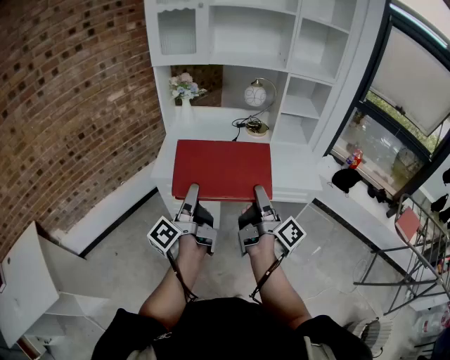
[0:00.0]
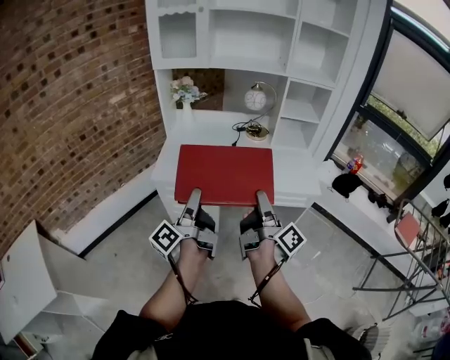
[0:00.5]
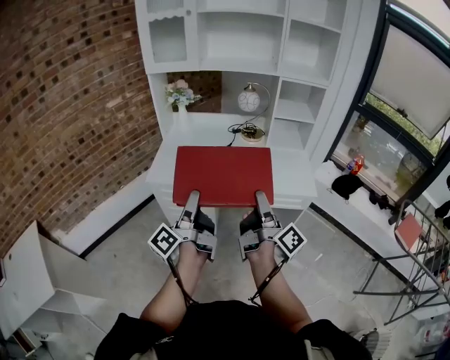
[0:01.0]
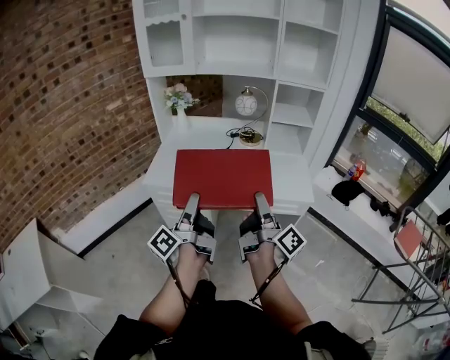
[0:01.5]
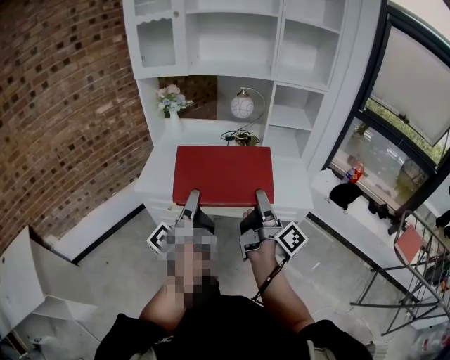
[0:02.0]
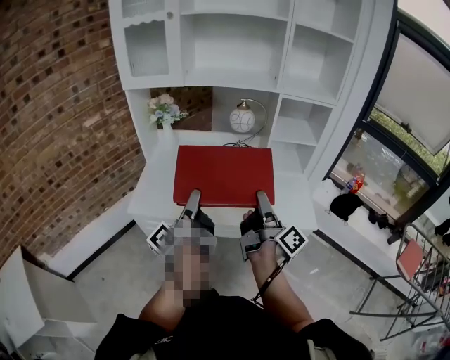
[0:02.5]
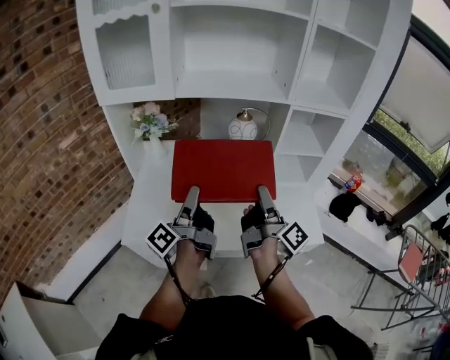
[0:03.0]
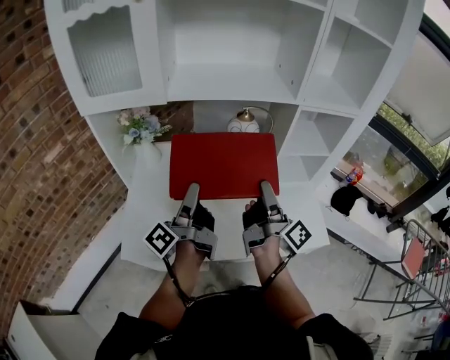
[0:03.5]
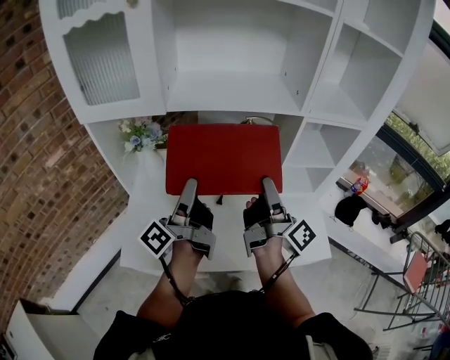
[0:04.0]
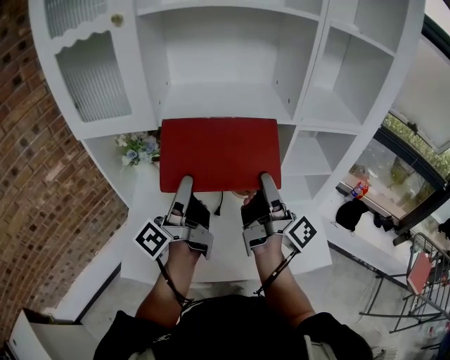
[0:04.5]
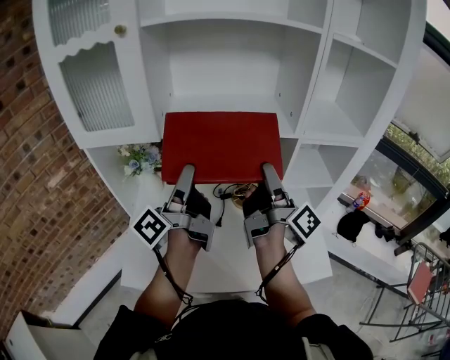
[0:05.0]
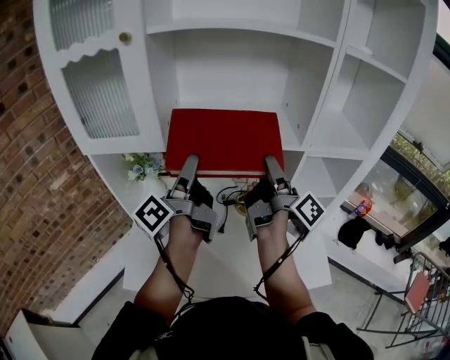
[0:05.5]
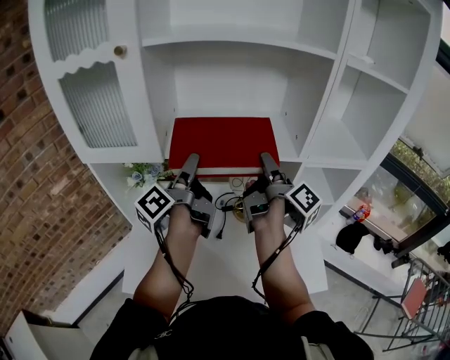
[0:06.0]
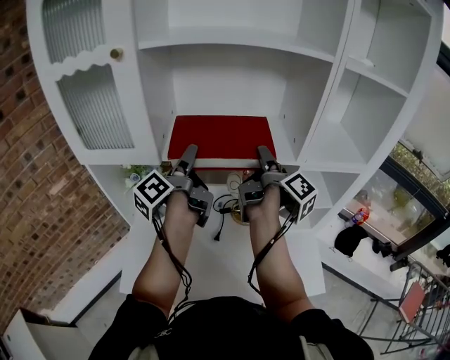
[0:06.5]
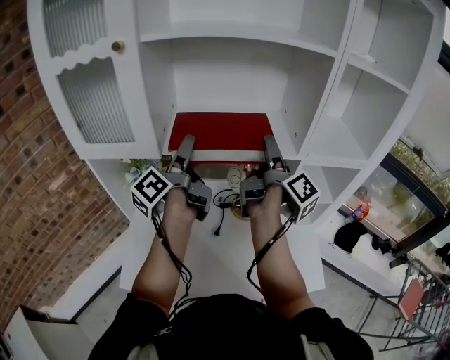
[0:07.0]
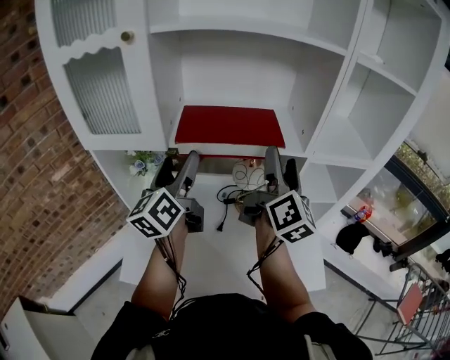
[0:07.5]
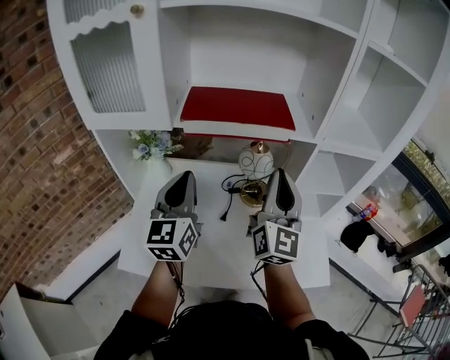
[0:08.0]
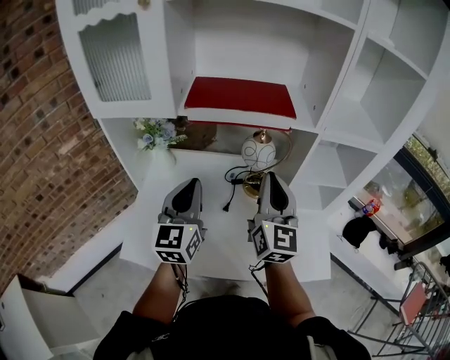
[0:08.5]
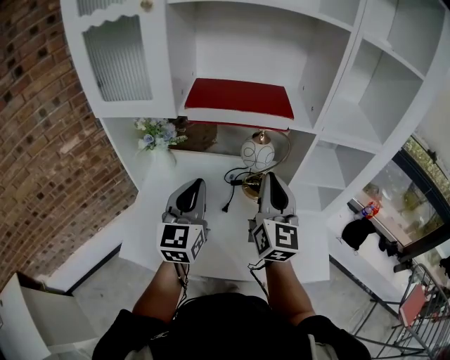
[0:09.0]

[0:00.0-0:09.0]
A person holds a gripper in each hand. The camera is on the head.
0:00.0 to 0:02.0: The grippers both shift to the right and forward by some 15 cm.
0:02.0 to 0:04.5: The pair of grippers is taken forward, about 40 cm.
0:04.5 to 0:07.0: Both grippers travel together forward and upward, some 15 cm. The right gripper opens its fingers; the left gripper opens up.
0:07.0 to 0:09.0: Both grippers move backward and downward, some 15 cm. The left gripper rolls clockwise, seen from behind, by approximately 70 degrees, and closes up; the right gripper twists approximately 80 degrees counterclockwise, seen from behind, and closes up.

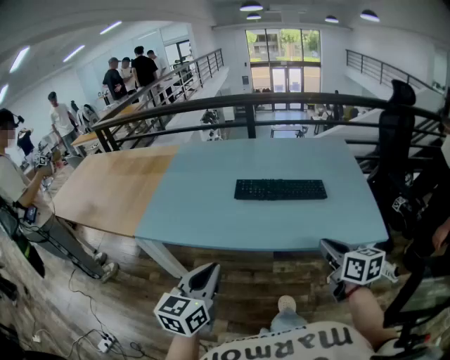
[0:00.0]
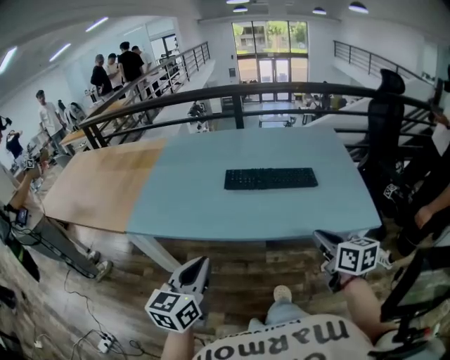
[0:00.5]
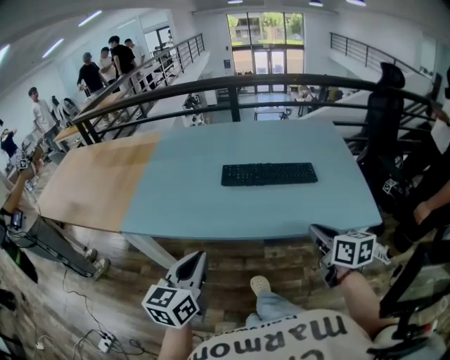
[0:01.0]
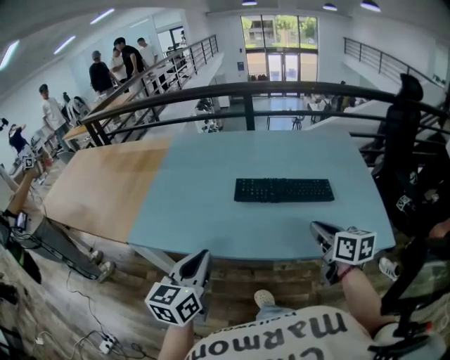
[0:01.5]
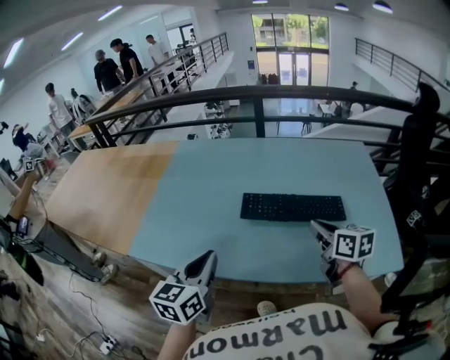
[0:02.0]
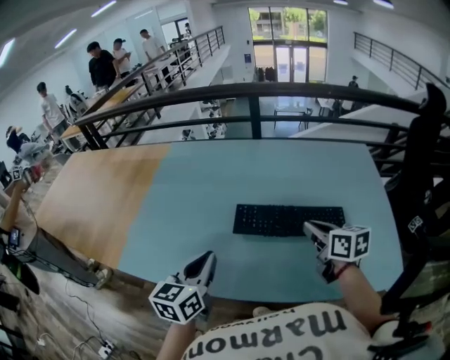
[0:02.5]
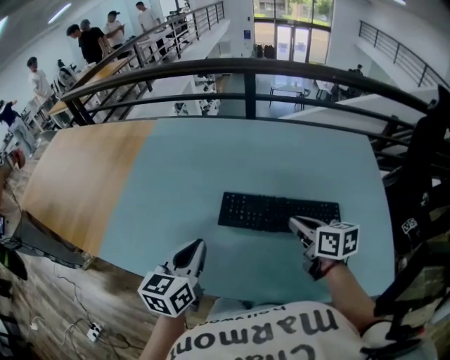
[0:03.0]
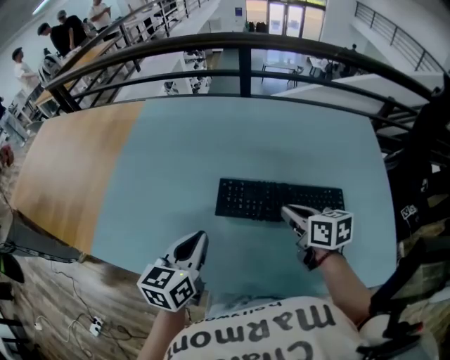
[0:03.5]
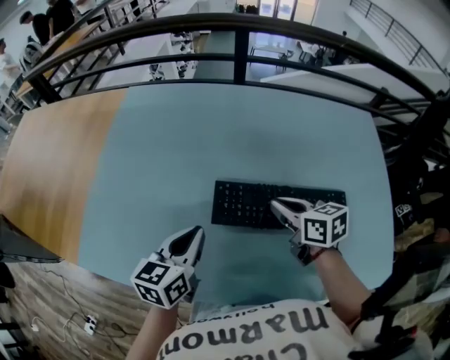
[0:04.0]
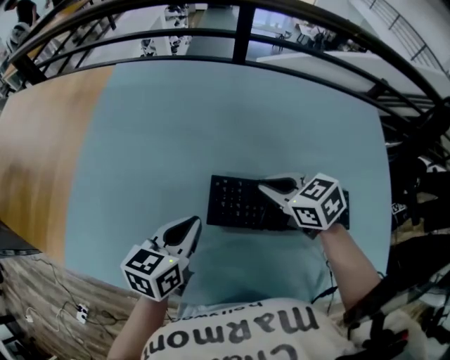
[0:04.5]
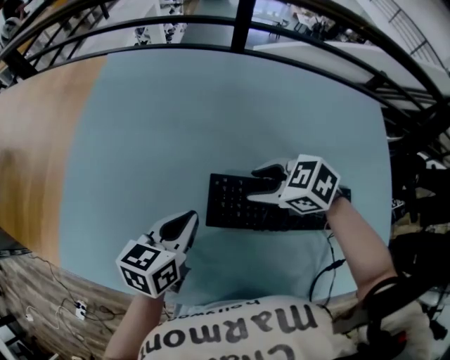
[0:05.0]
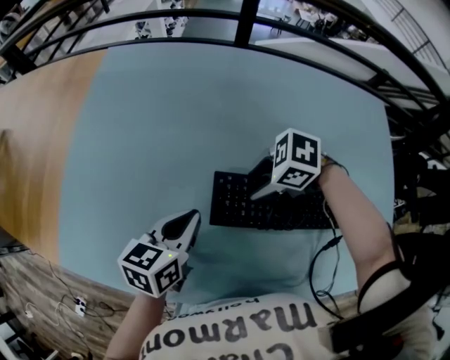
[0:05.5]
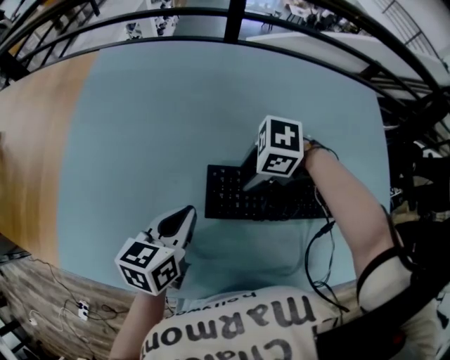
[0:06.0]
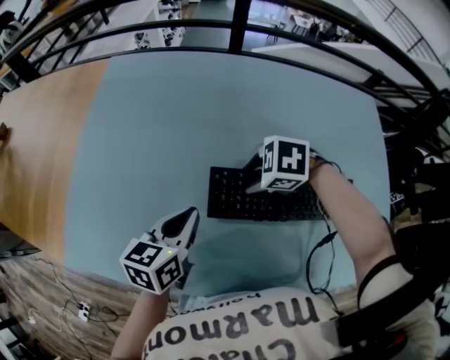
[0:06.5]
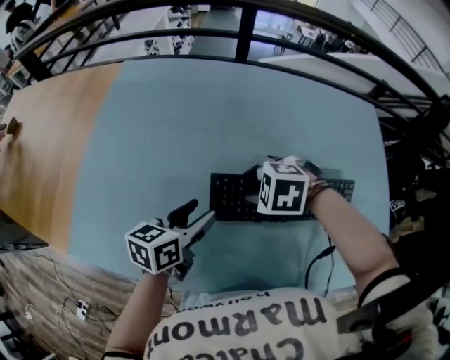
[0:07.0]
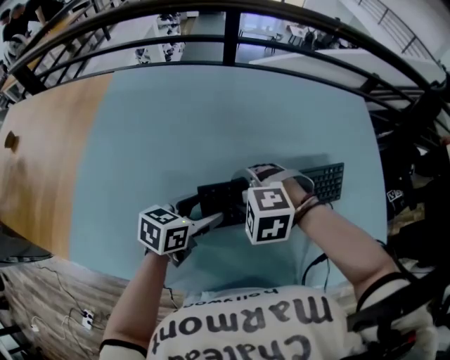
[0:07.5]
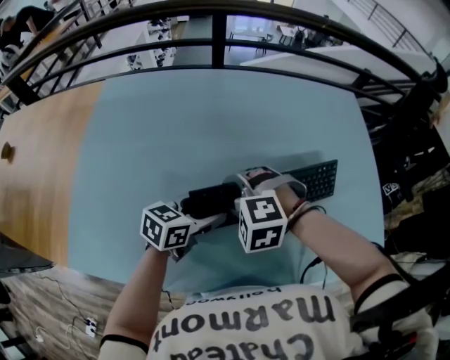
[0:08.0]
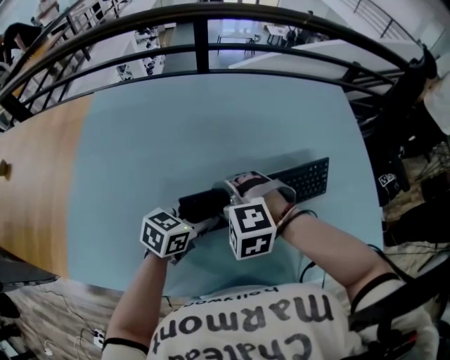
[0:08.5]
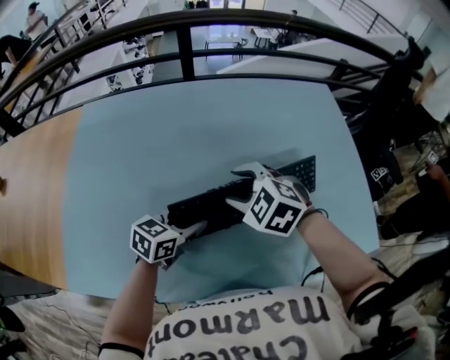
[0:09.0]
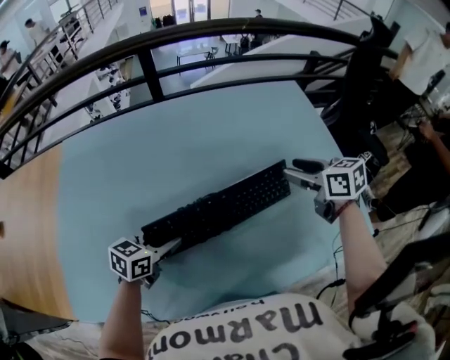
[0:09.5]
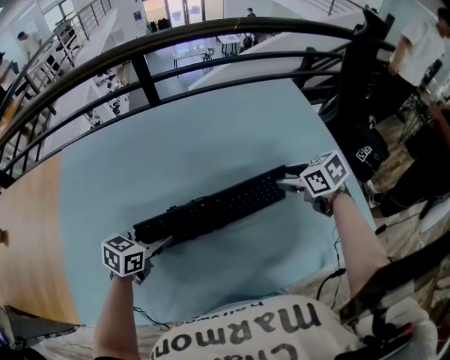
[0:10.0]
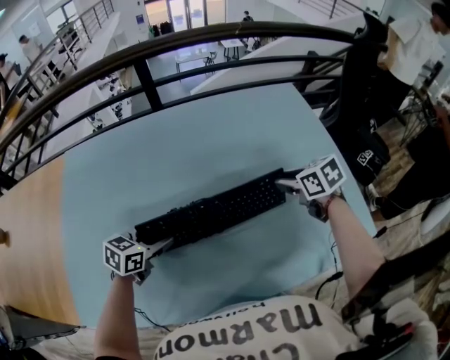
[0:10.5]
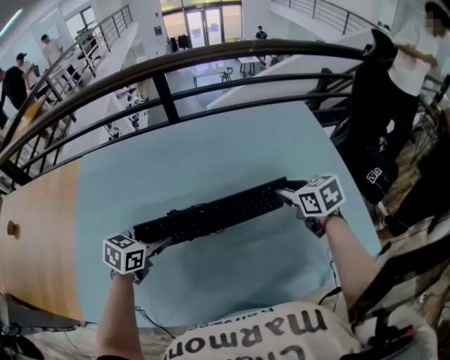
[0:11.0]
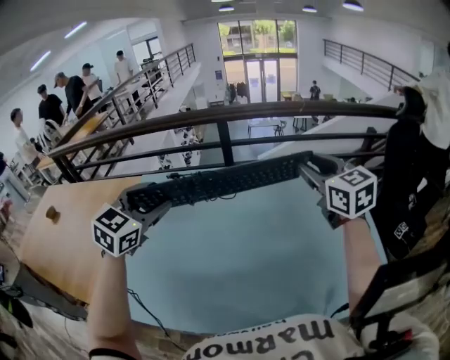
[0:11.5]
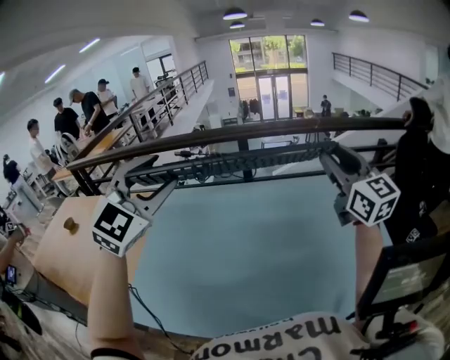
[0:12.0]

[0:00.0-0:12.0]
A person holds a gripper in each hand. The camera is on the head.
0:00.0 to 0:02.0: The two grippers go approximately 20 cm forward.
0:02.0 to 0:04.0: Both grippers travel together forward and downward, some 20 cm.
0:04.0 to 0:06.0: The left gripper is displaced downward by about 5 cm; the right gripper ends up approximately 10 cm from where it was, turns by about 70 degrees, and opens its fingers.
0:06.0 to 0:08.0: The right gripper shifts about 5 cm upward, and swivels about 50 degrees. The left gripper moves roughly 10 cm, changes its angle by roughly 30 degrees, and opens.
0:08.0 to 0:10.0: The right gripper goes some 30 cm to the right, and rolls clockwise, seen from behind, by roughly 80 degrees.
0:10.0 to 0:12.0: Both grippers move upward, some 40 cm. The right gripper points its fingers about 60 degrees further upward. The left gripper tilts its fingers some 30 degrees upward.

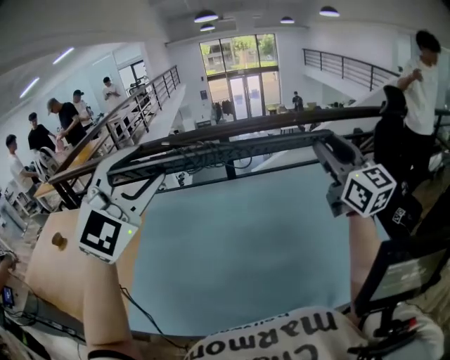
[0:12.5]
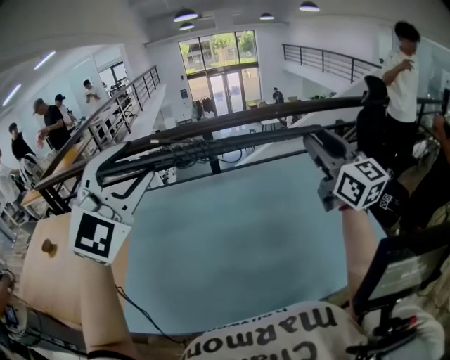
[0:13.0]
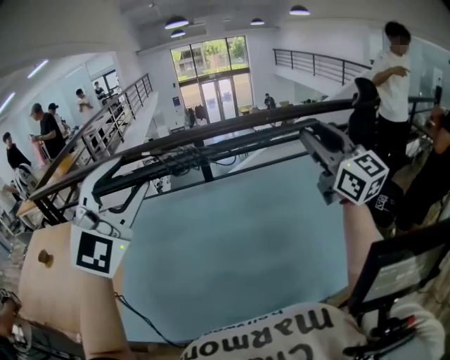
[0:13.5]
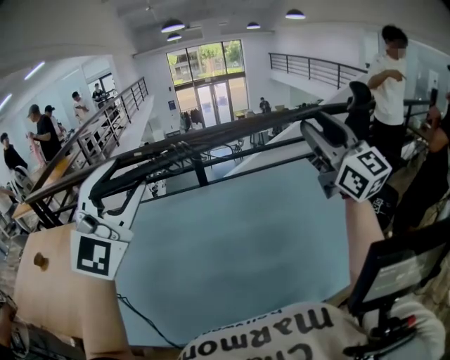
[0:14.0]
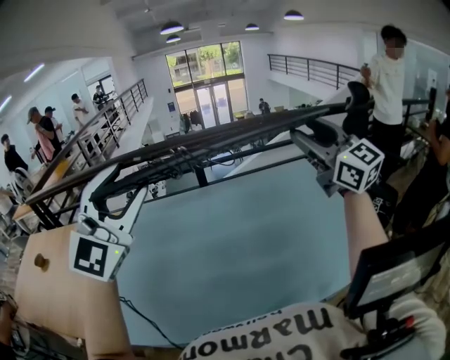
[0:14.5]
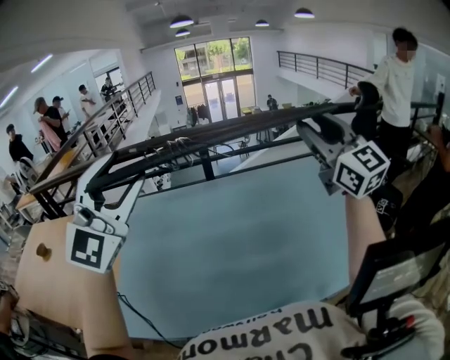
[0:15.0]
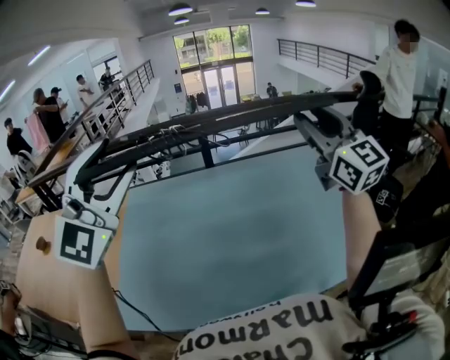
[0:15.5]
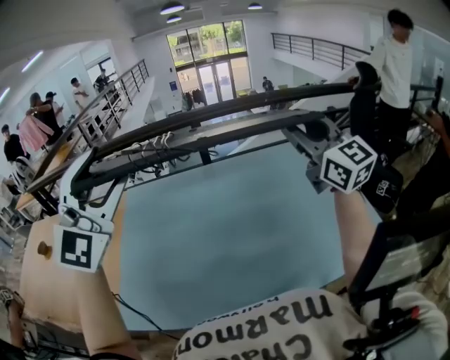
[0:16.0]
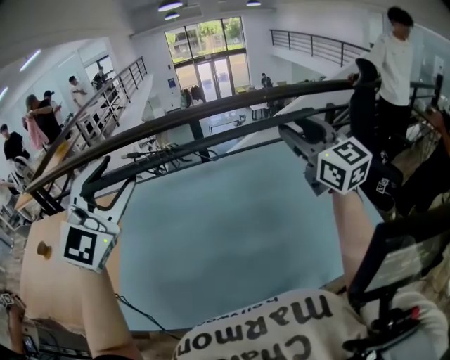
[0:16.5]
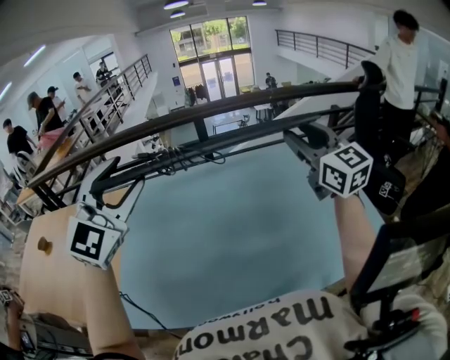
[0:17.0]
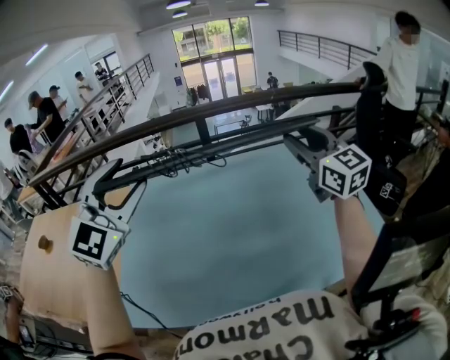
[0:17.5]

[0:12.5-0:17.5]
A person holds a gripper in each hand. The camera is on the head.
0:12.5 to 0:15.0: The right gripper shifts by roughly 5 cm.
0:15.0 to 0:17.5: The left gripper is displaced downward by about 5 cm, while the right gripper is displaced downward and to the left by about 10 cm.

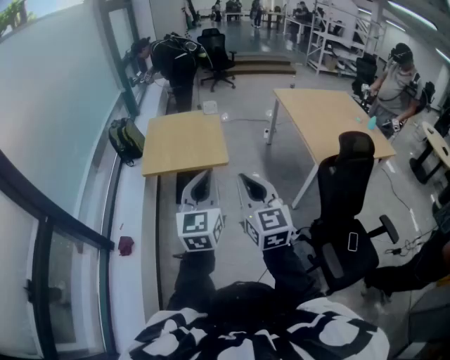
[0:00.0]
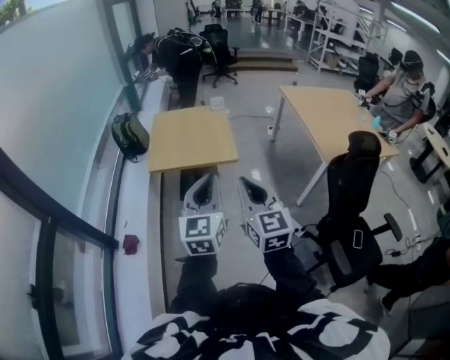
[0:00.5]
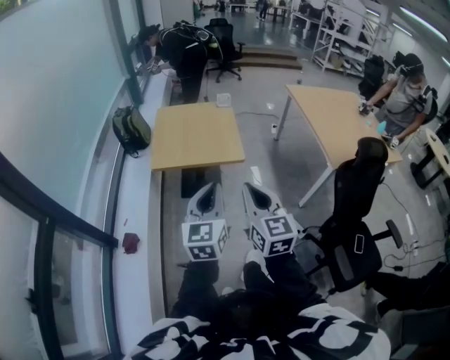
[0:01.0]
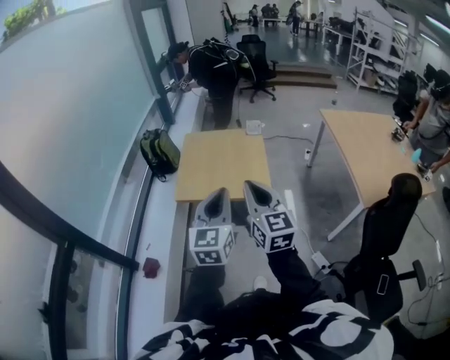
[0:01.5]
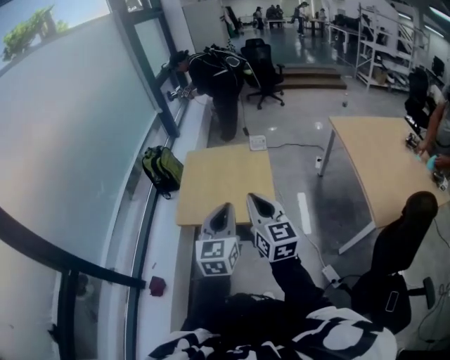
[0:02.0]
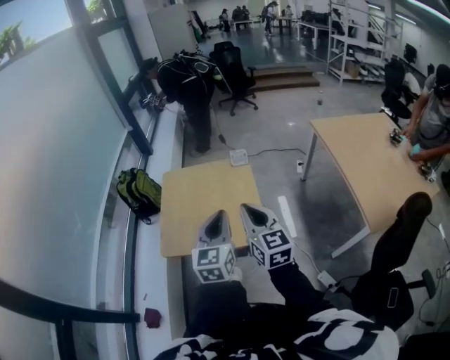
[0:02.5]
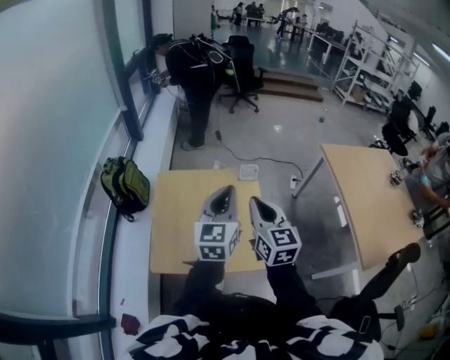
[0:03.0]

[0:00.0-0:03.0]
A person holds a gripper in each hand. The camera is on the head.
0:00.0 to 0:01.5: The two grippers go some 20 cm forward and to the left.
0:01.5 to 0:03.0: Both grippers travel together forward, roughly 40 cm.
